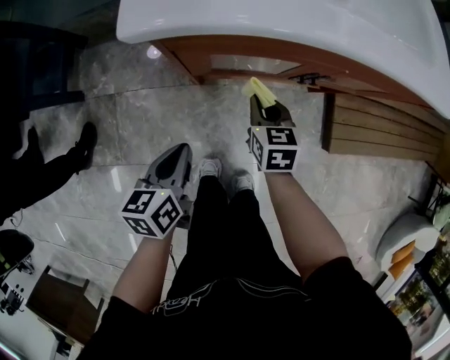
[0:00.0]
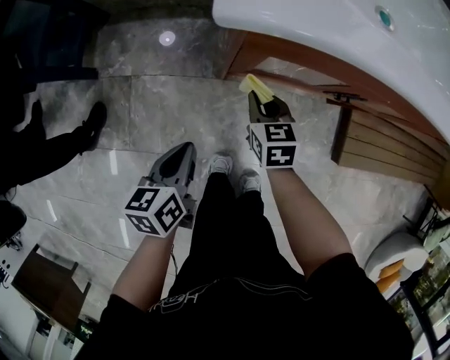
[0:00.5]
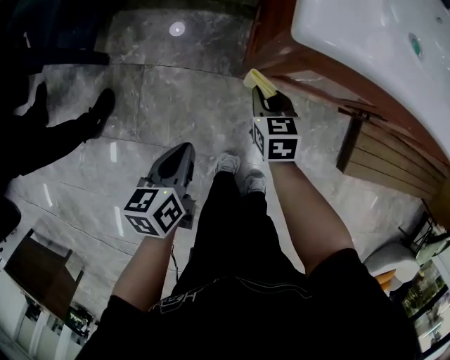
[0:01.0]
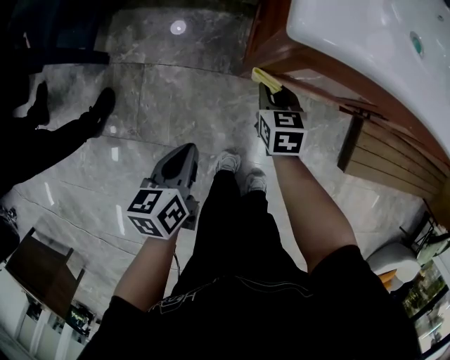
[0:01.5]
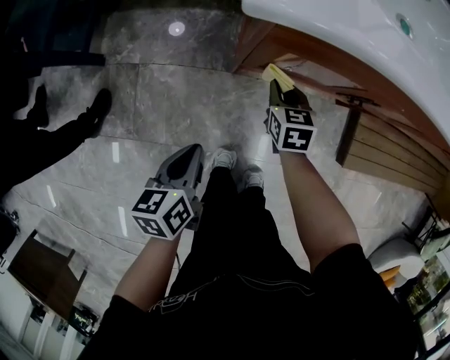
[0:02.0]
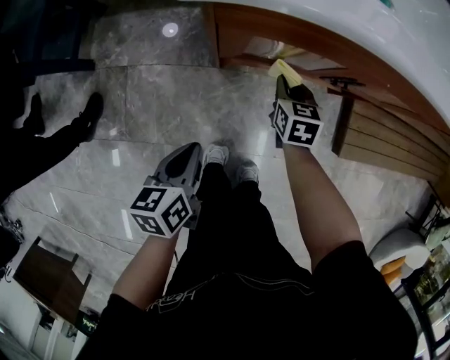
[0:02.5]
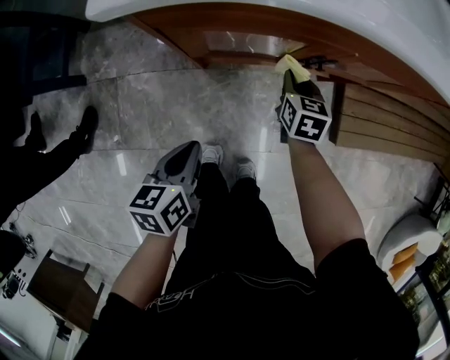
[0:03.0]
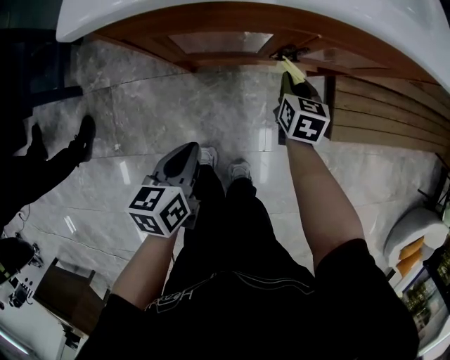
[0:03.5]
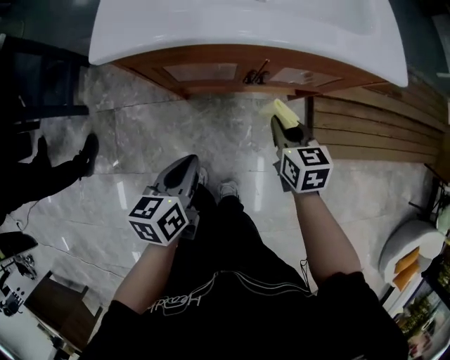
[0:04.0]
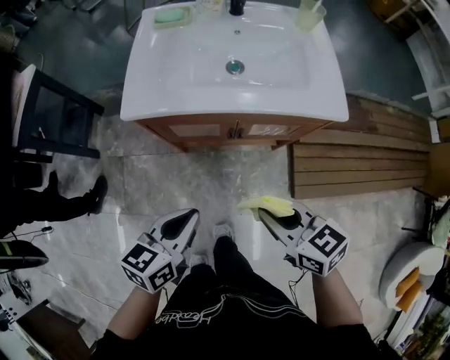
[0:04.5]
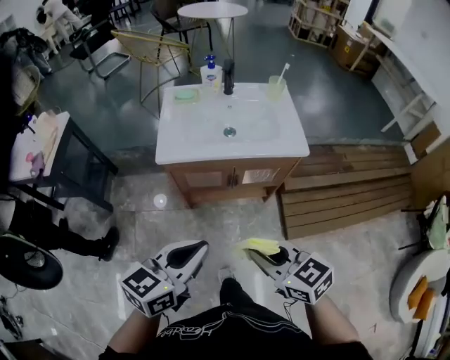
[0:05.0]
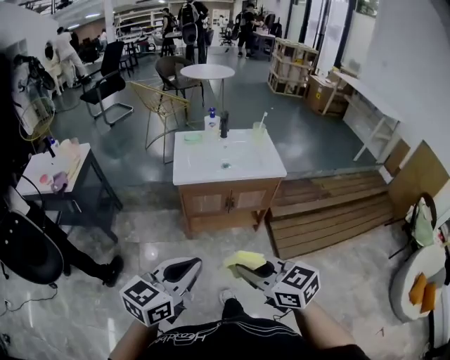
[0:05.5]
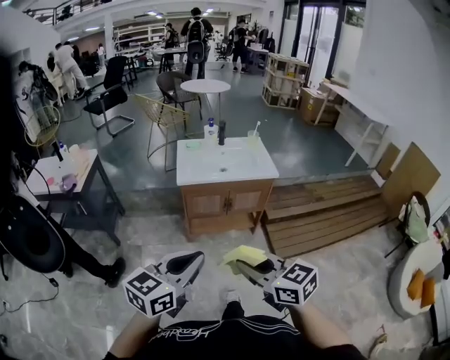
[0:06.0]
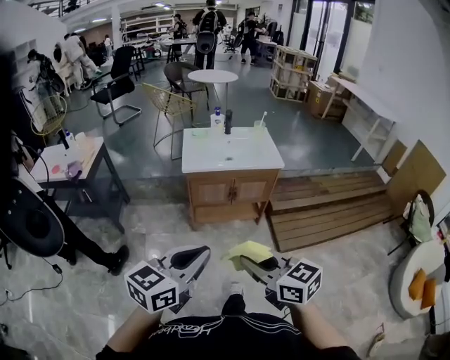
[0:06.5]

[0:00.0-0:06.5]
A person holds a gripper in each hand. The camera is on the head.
0:00.0 to 0:02.0: The left gripper moves to the left, approximately 5 cm, while the right gripper is displaced to the left and downward by about 10 cm.
0:02.0 to 0:04.5: The right gripper travels upward, to the right and backward by approximately 50 cm, and swivels roughly 30 degrees; the left gripper goes roughly 35 cm upward and to the right, and changes its angle by some 30 degrees.
0:04.5 to 0:06.5: Both grippers travel together backward and upward, roughly 50 cm. The left gripper rotates about 30 degrees. The right gripper turns by about 20 degrees.

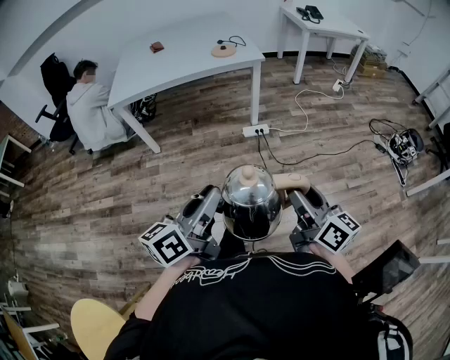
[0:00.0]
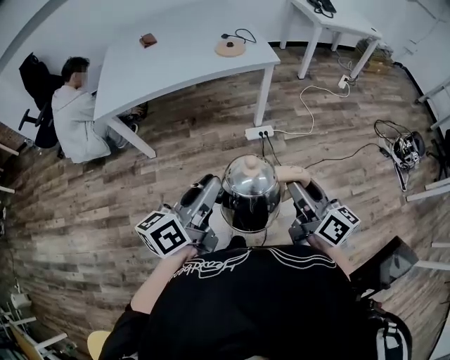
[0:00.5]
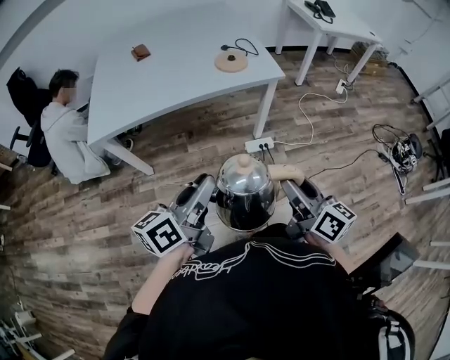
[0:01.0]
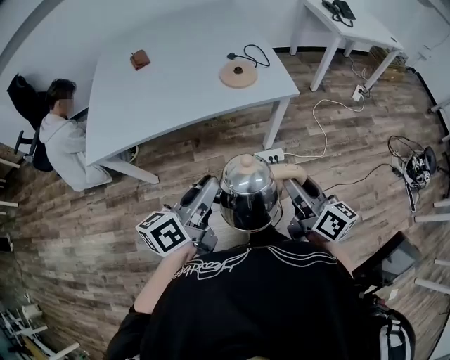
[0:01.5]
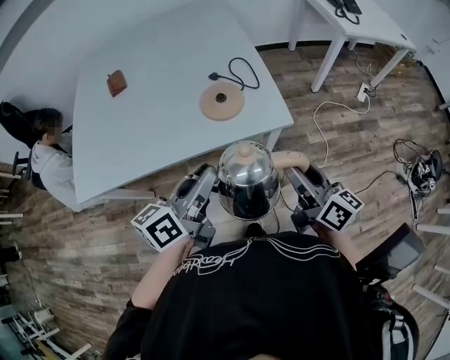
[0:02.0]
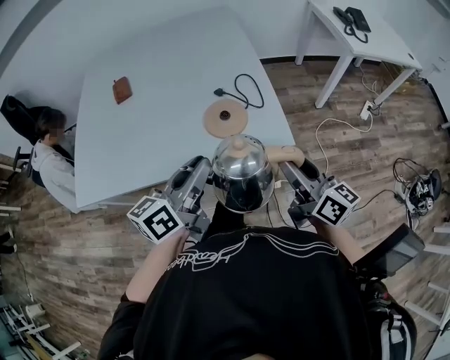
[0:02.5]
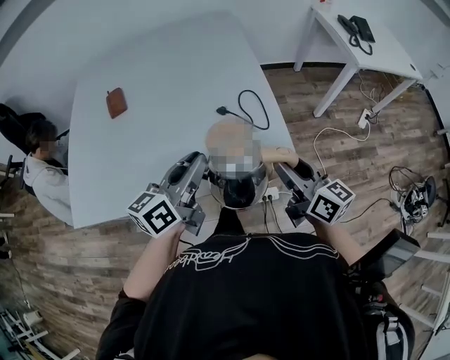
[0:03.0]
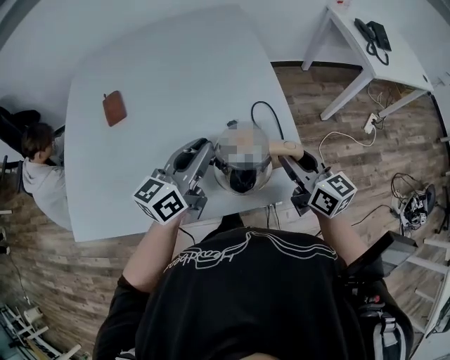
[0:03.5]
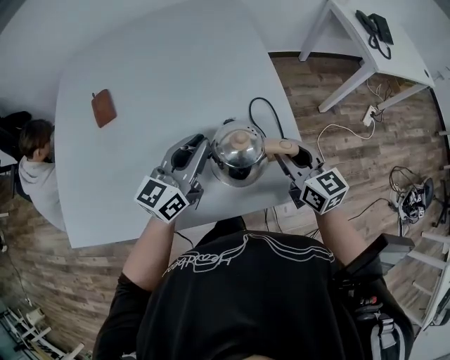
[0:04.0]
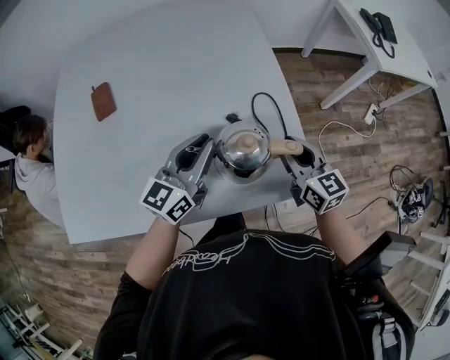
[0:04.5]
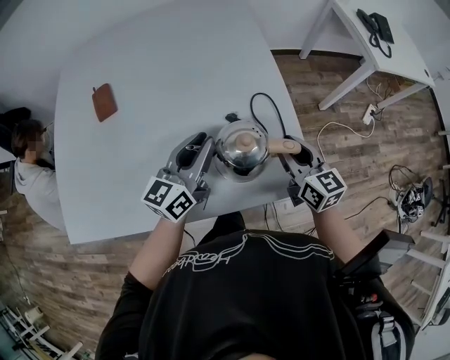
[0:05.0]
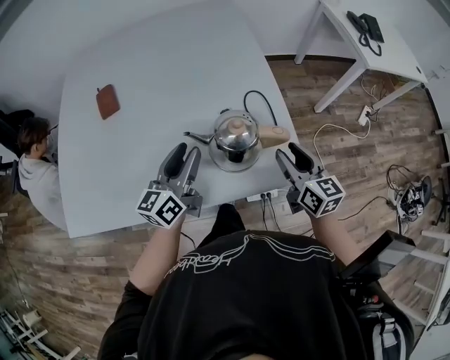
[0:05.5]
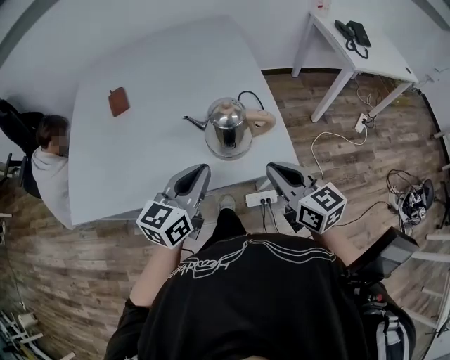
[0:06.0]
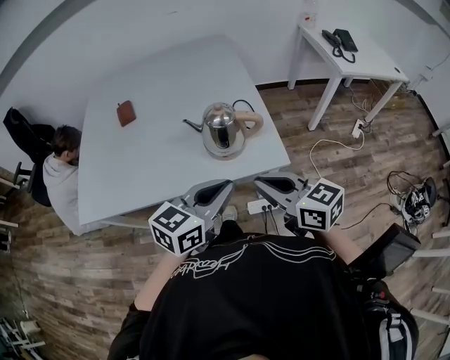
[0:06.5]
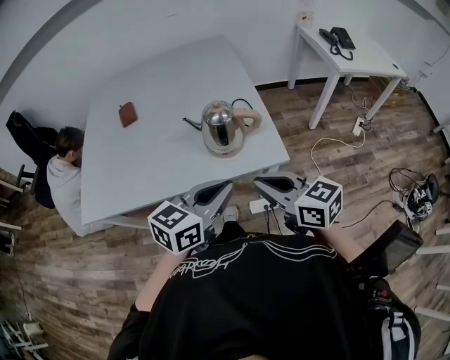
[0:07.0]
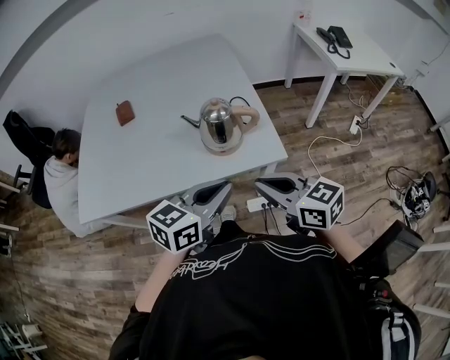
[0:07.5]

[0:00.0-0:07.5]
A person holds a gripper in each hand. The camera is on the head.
0:00.0 to 0:02.0: Both grippers are carried forward, about 70 cm.
0:02.0 to 0:04.0: The grippers both shift forward by roughly 30 cm. The right gripper swivels approximately 30 degrees, while the left gripper changes its angle by roughly 30 degrees.
0:04.0 to 0:05.5: The two grippers go about 5 cm backward. The left gripper opens.
0:05.5 to 0:07.5: The right gripper goes roughly 25 cm backward and upward, rotates approximately 30 degrees, and closes. Meanwhile the left gripper goes about 30 cm backward, to the right and upward, swivels about 30 degrees, and closes up.

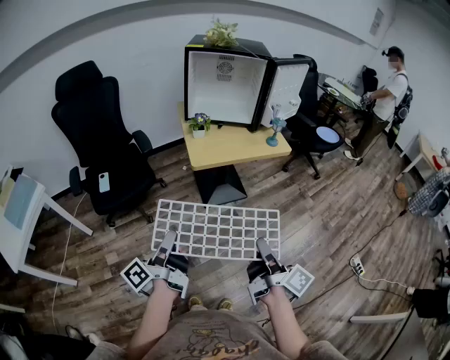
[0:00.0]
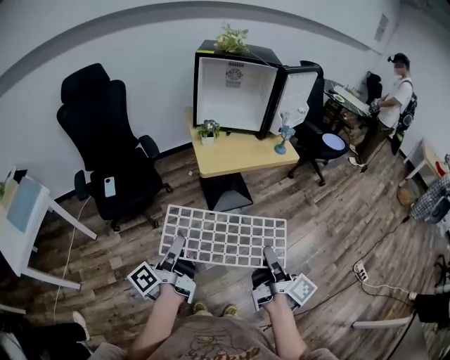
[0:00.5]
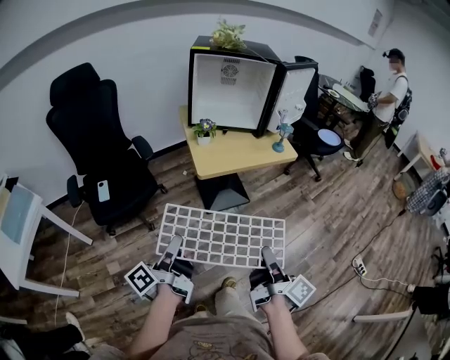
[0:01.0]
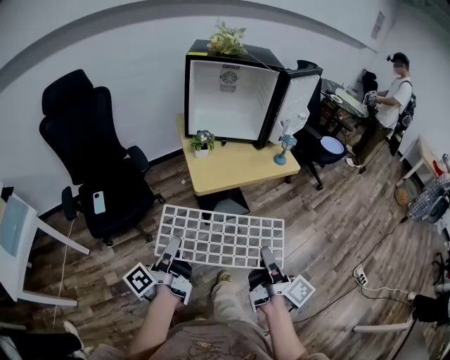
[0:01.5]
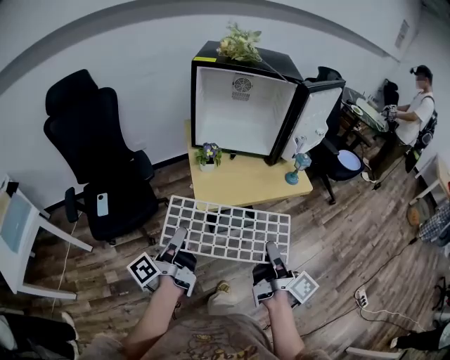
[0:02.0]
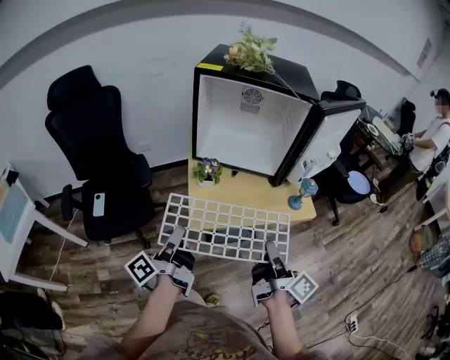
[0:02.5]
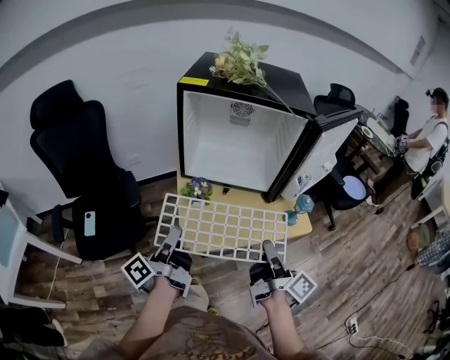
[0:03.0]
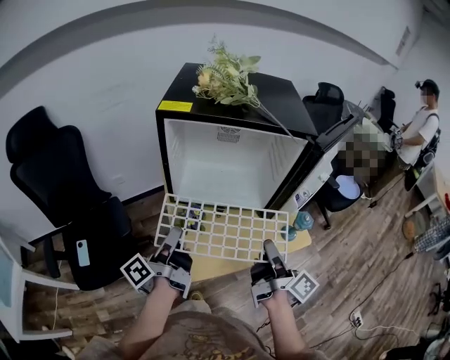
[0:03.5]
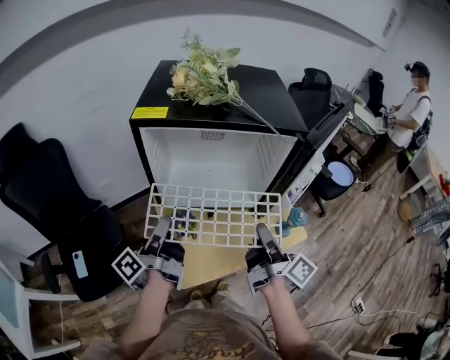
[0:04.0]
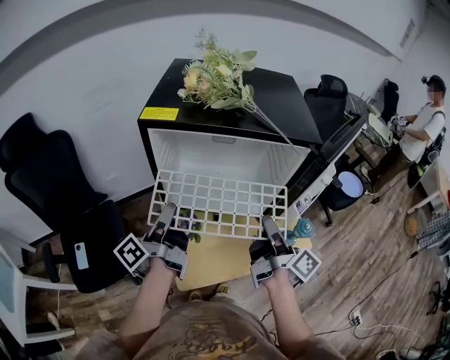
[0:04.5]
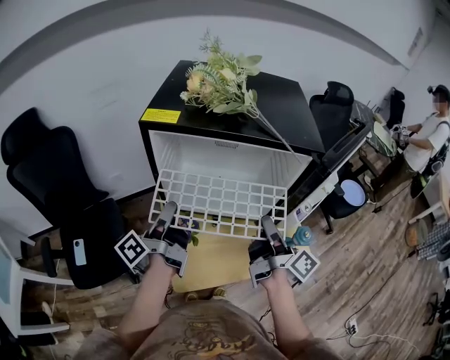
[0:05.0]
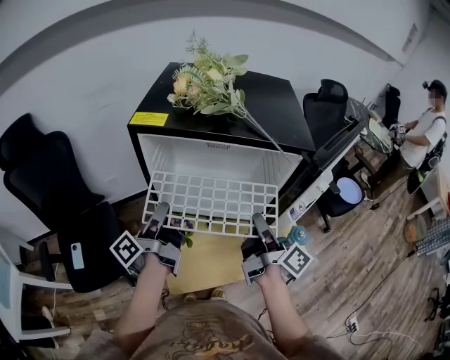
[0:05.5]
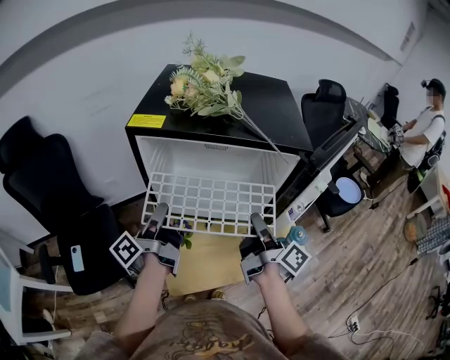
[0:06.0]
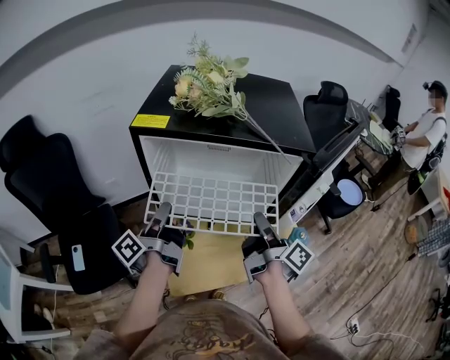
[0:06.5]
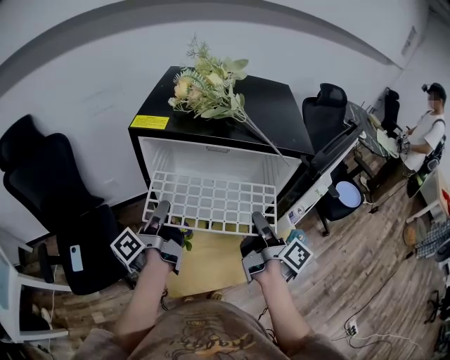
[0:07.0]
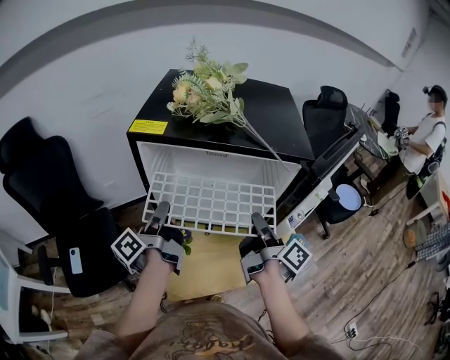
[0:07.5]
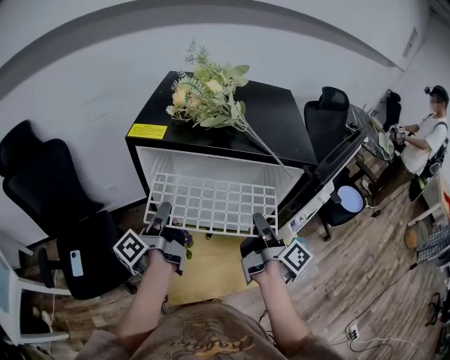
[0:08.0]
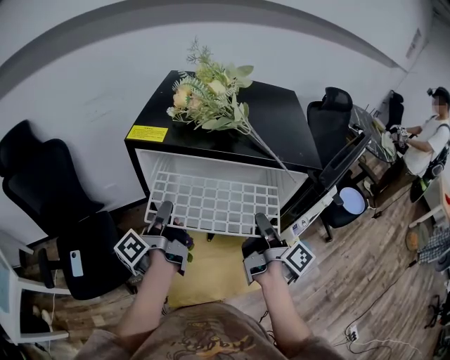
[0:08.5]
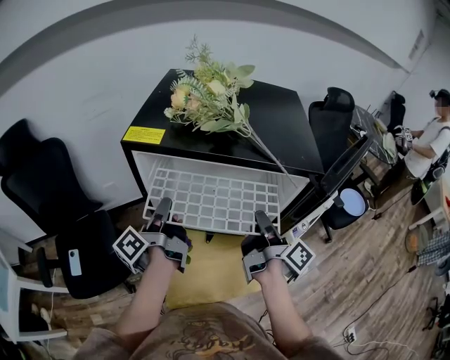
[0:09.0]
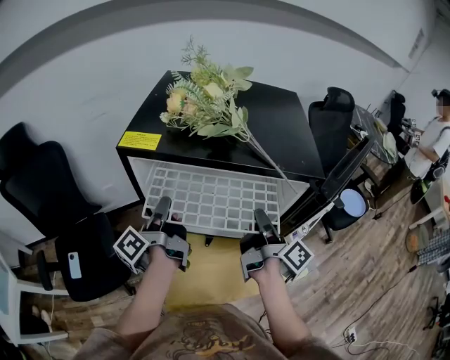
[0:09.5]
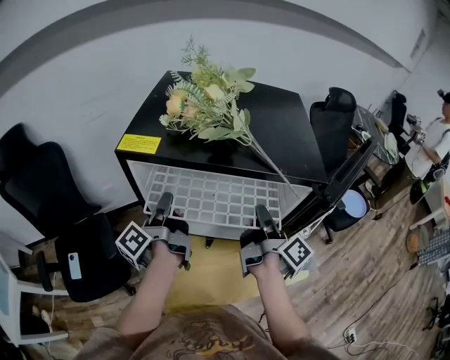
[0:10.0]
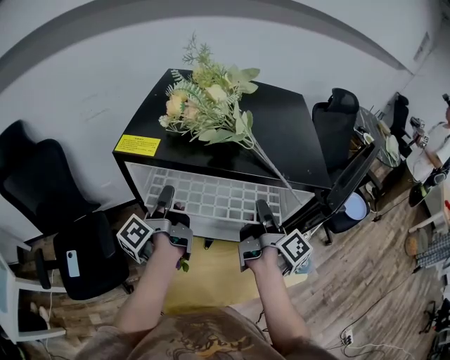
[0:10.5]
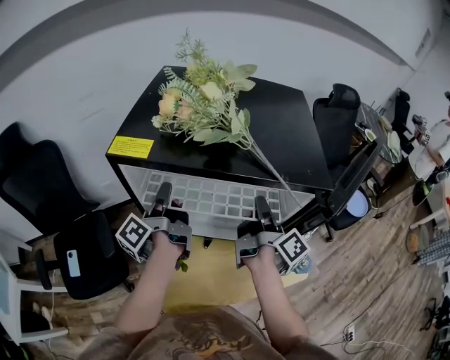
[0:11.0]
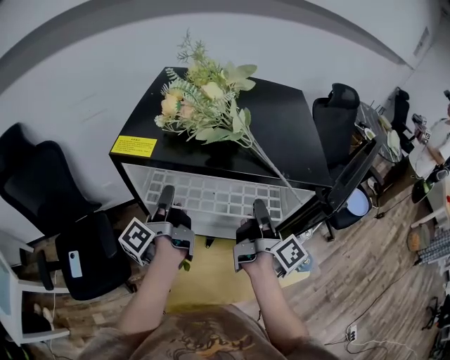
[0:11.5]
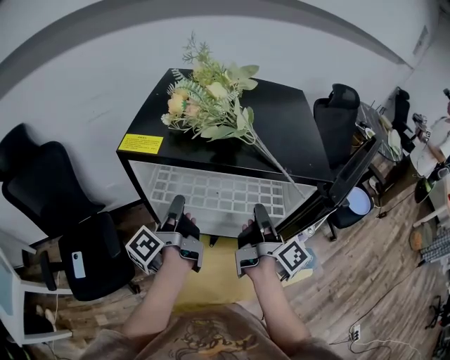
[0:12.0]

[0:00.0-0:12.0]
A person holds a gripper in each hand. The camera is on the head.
0:00.0 to 0:02.0: The right gripper changes place by roughly 25 cm.
0:02.0 to 0:04.0: The right gripper shifts by approximately 35 cm.
0:04.0 to 0:06.0: The right gripper moves about 10 cm.
0:08.0 to 0:10.0: The right gripper changes place by about 5 cm.

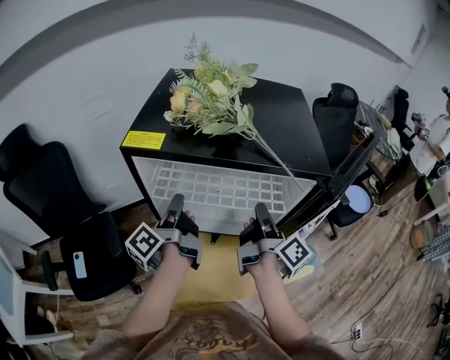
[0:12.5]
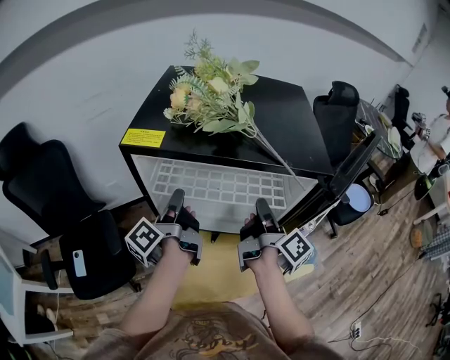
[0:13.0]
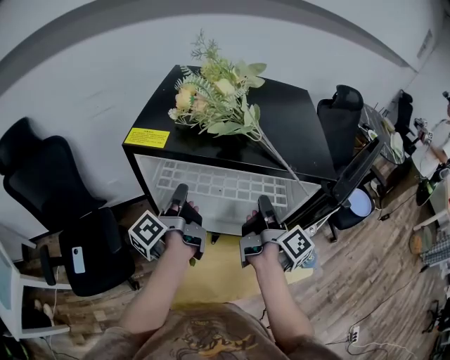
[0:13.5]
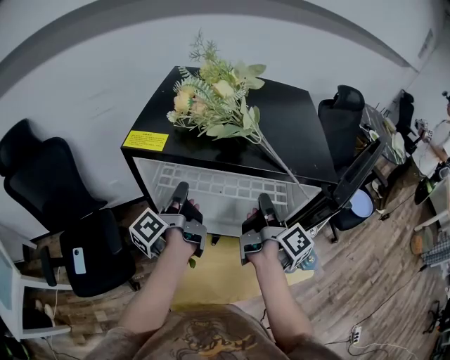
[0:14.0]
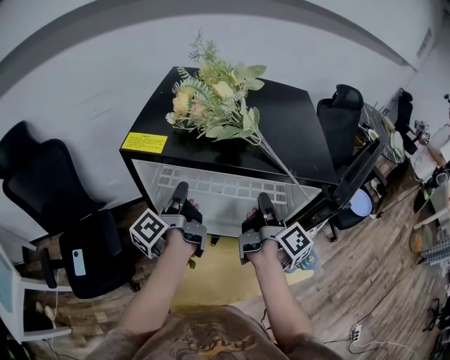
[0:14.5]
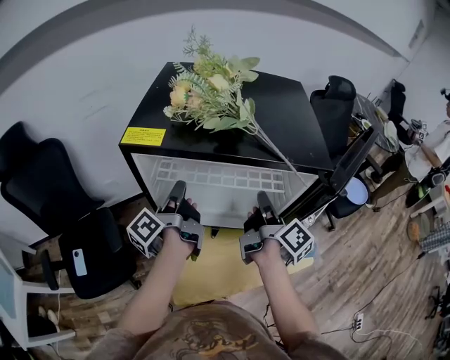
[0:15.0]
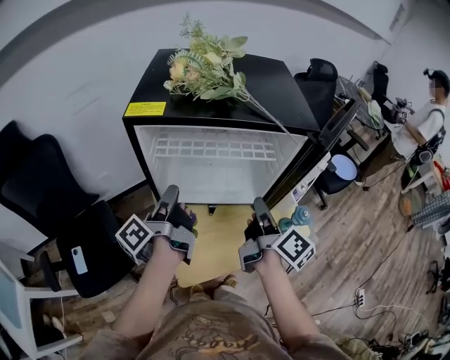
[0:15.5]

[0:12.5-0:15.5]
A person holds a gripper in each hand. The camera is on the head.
0:14.0 to 0:15.5: The right gripper moves approximately 15 cm.
